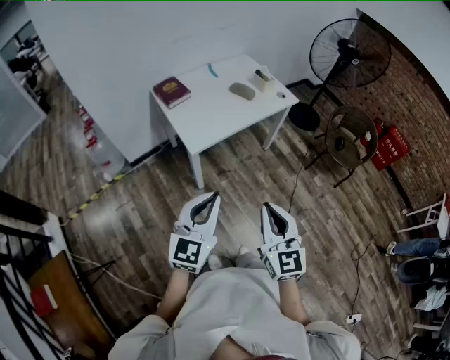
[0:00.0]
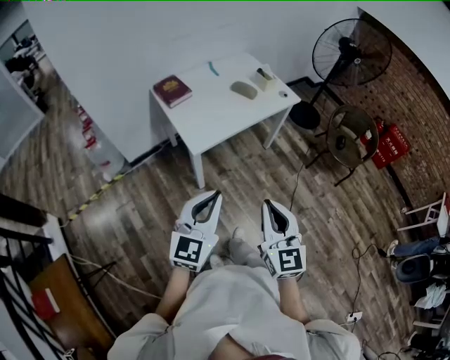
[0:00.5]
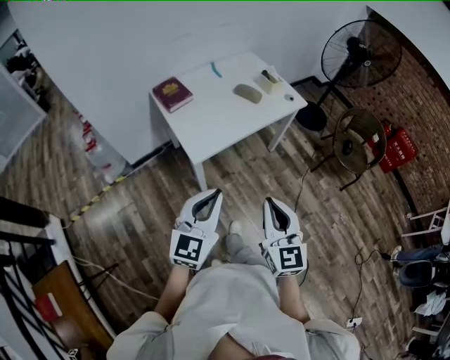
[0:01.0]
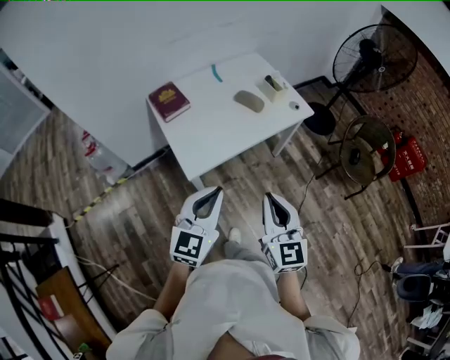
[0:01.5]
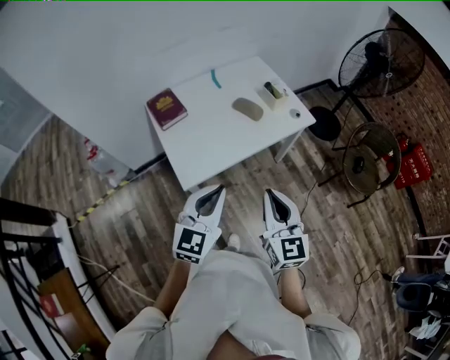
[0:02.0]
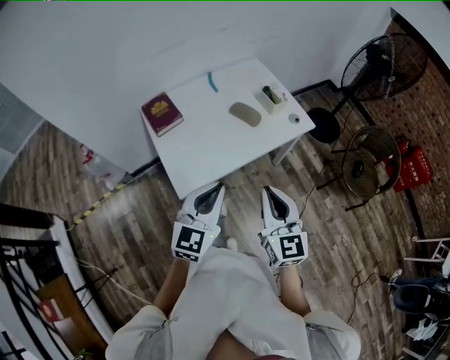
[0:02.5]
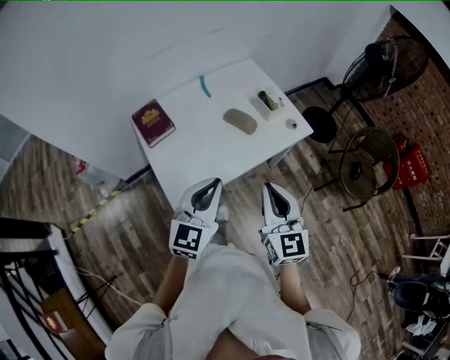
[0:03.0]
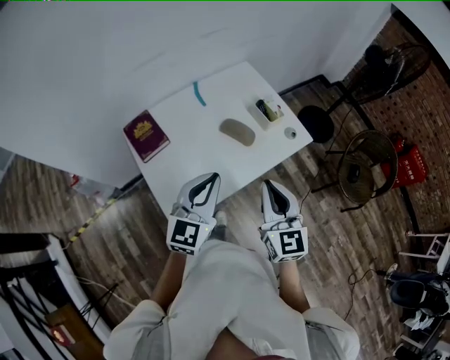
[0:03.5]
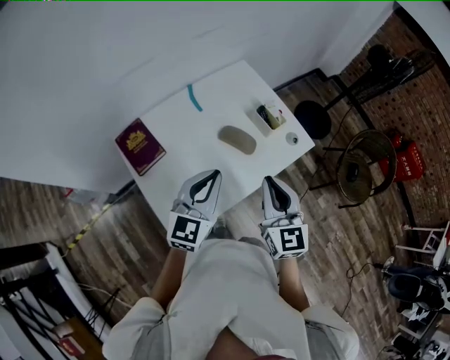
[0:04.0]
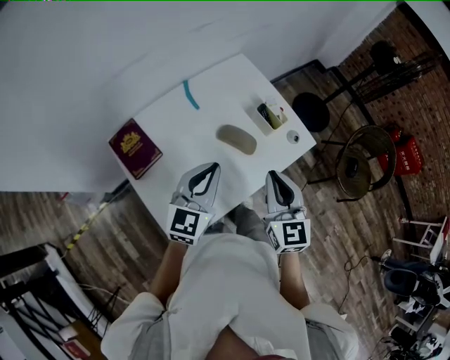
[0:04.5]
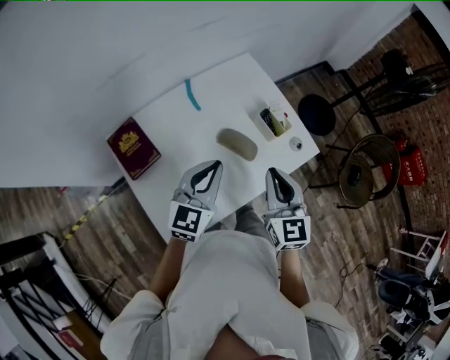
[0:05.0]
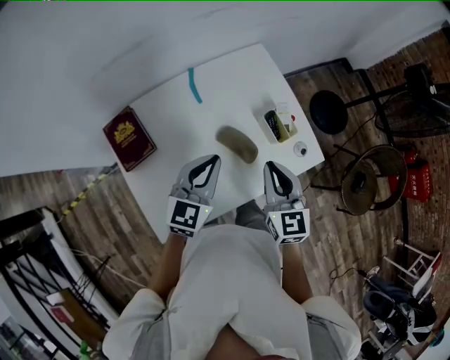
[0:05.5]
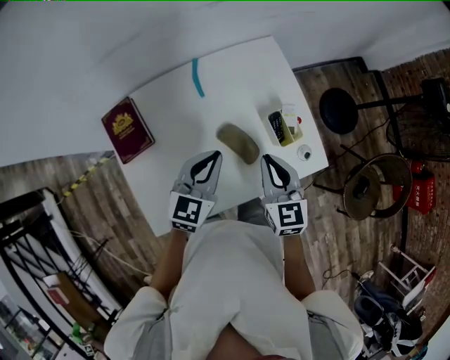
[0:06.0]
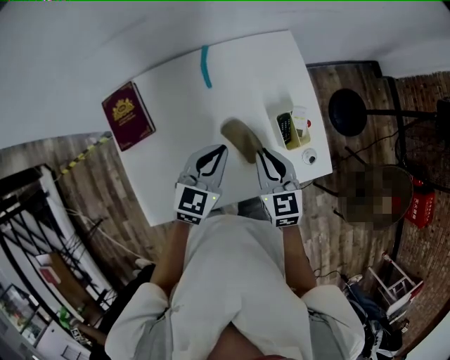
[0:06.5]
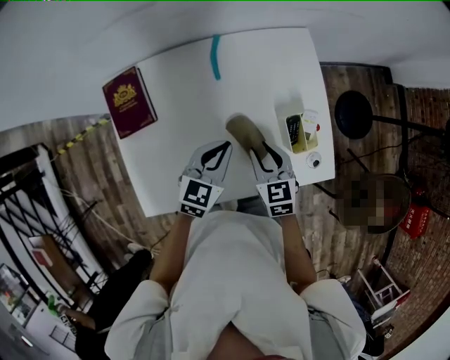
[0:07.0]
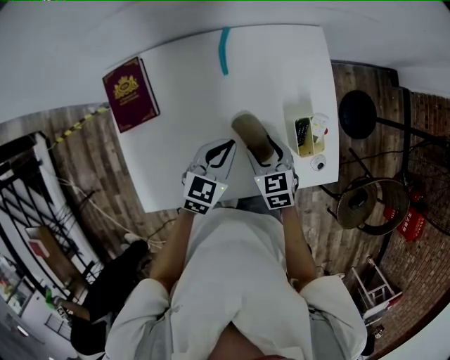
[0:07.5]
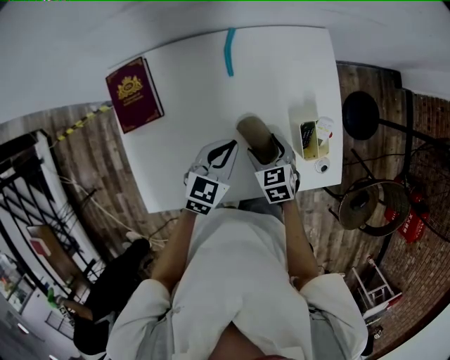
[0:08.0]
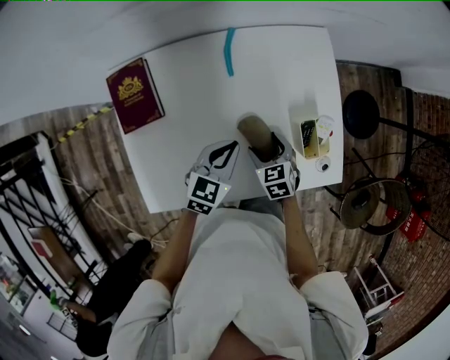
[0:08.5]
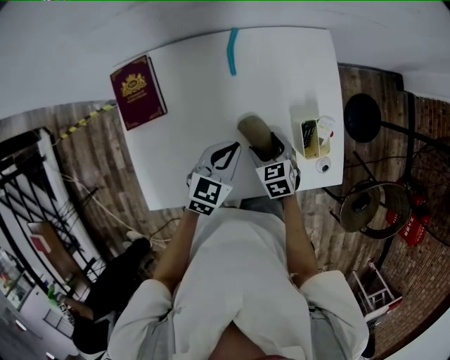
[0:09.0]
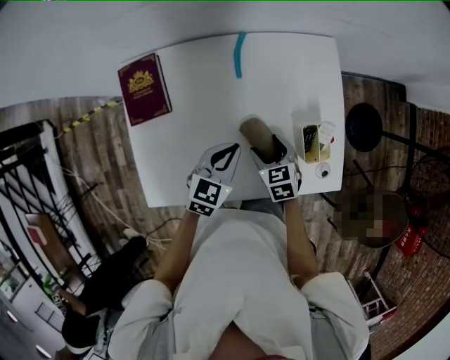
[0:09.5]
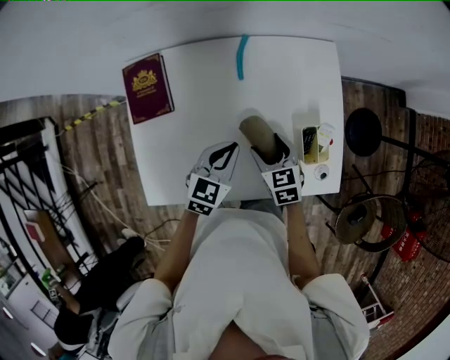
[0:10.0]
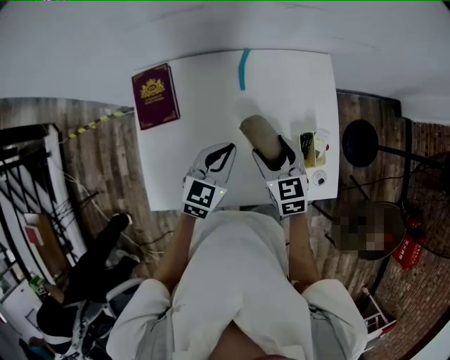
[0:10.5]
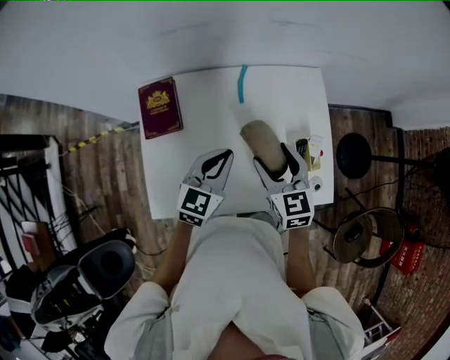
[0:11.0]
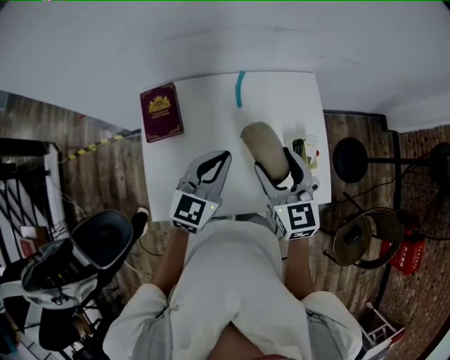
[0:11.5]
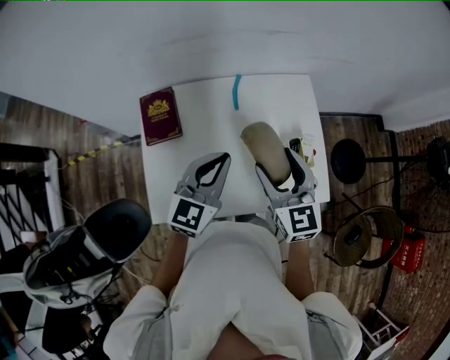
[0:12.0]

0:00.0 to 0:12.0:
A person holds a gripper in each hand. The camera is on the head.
0:00.0 to 0:02.0: The two grippers go about 30 cm forward.
0:02.0 to 0:04.0: The two grippers go some 30 cm forward.
0:04.0 to 0:06.0: The grippers both shift forward and downward by about 20 cm. The right gripper swivels about 20 degrees.
0:06.0 to 0:08.0: The left gripper moves downward, some 10 cm. Meanwhile the right gripper travels downward by roughly 20 cm, turns by roughly 40 degrees, and opens up.
0:08.0 to 0:10.0: The grippers make only small movements.
0:10.0 to 0:12.0: Both grippers move upward, roughly 20 cm. The left gripper turns by about 20 degrees, while the right gripper swivels about 30 degrees.

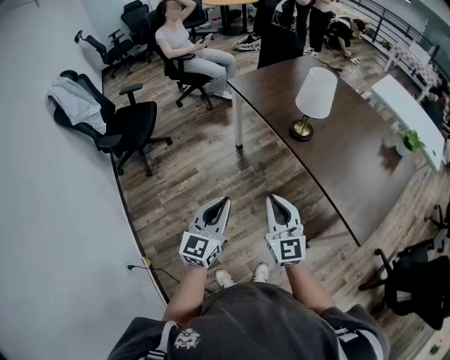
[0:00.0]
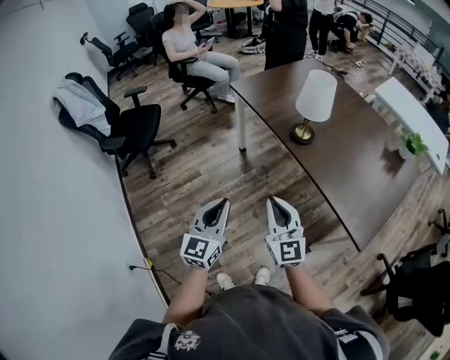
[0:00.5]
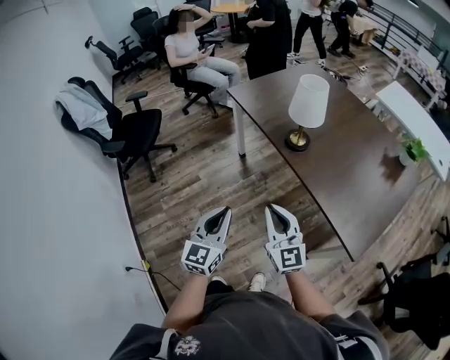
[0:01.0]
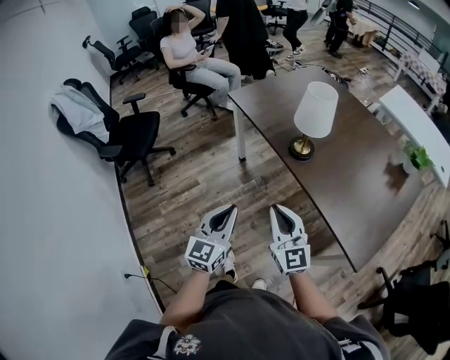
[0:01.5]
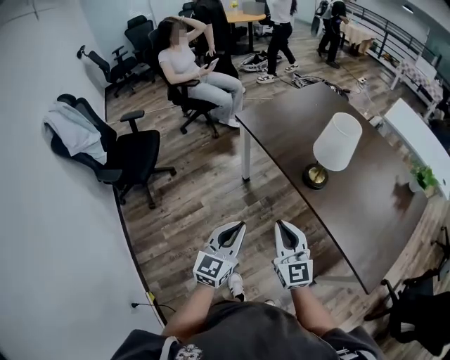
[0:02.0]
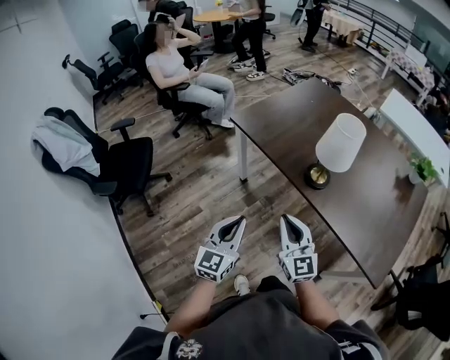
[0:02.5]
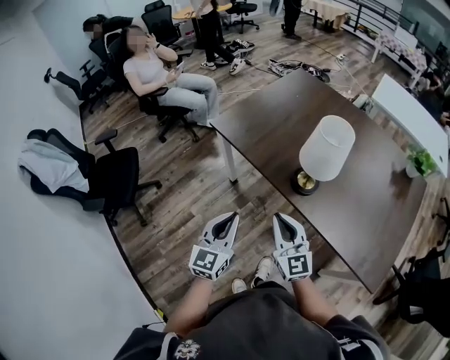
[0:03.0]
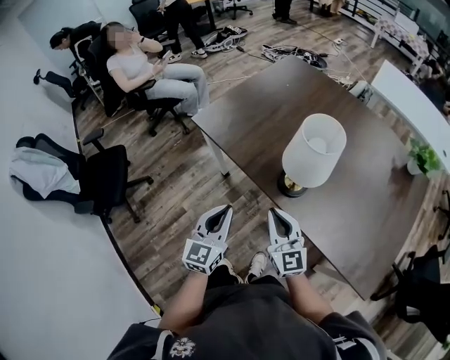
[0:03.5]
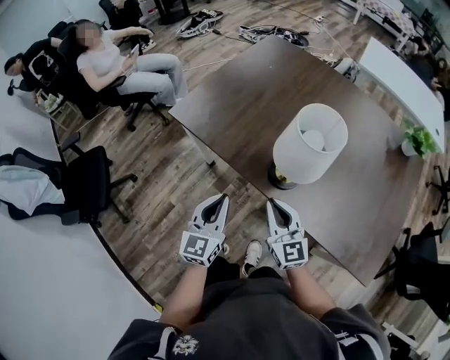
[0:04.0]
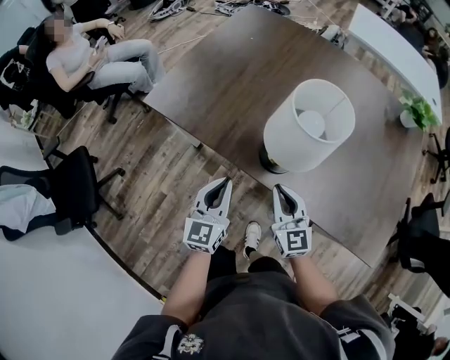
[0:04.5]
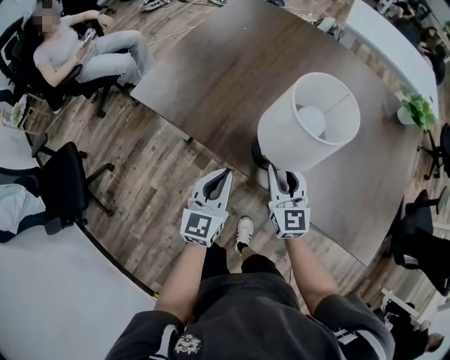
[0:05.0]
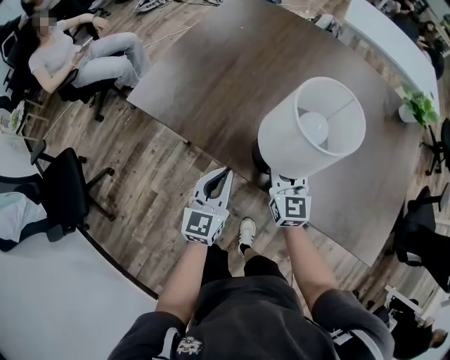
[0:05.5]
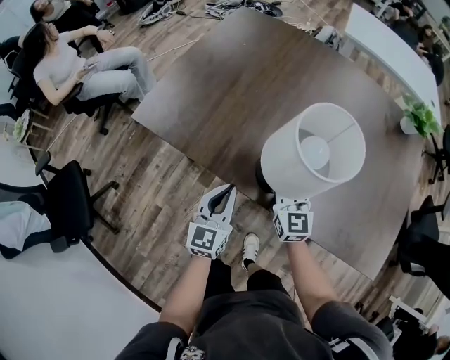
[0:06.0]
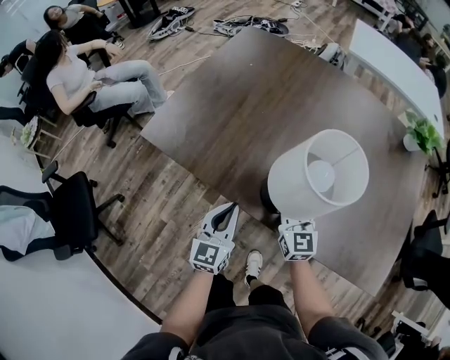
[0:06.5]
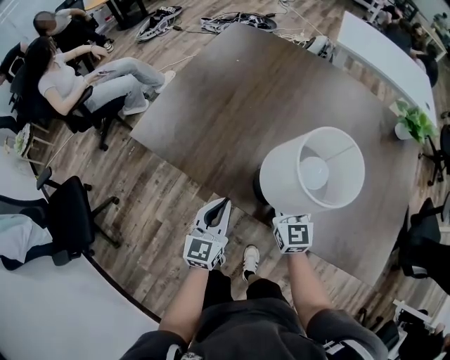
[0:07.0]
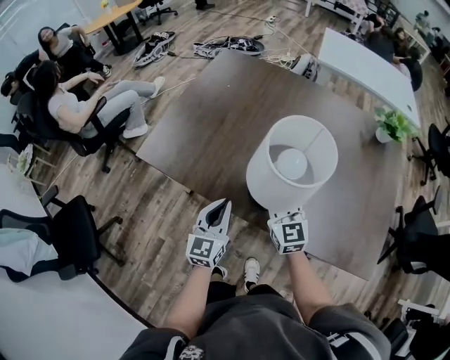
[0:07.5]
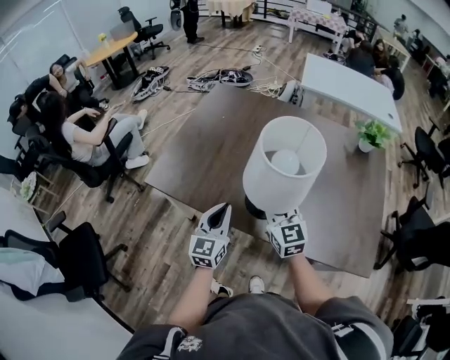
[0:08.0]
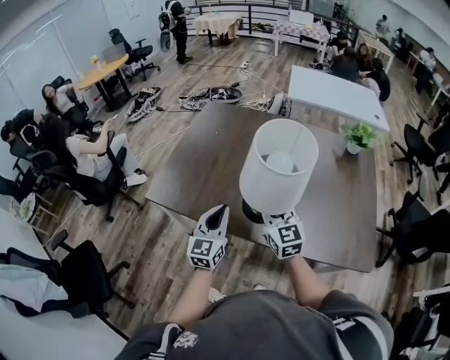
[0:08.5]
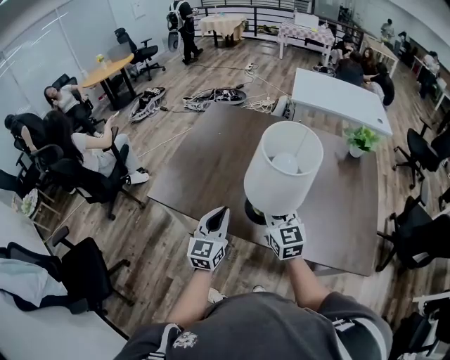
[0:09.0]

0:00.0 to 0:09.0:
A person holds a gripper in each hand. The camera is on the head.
0:00.0 to 0:02.0: Both grippers move forward, about 15 cm.
0:02.0 to 0:04.5: The right gripper shifts about 30 cm forward, downward and to the right, and turns by roughly 30 degrees. The left gripper shifts roughly 35 cm forward and downward.
0:04.5 to 0:07.0: The right gripper travels forward by approximately 10 cm. Meanwhile the left gripper moves forward, approximately 5 cm.
0:07.0 to 0:09.0: Both grippers move upward, some 20 cm.

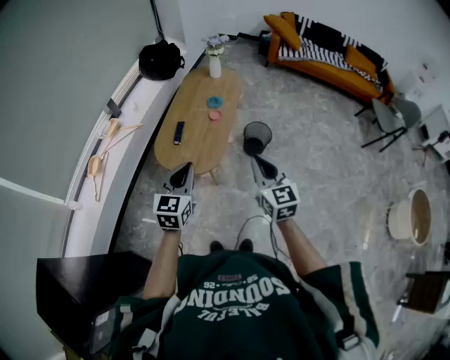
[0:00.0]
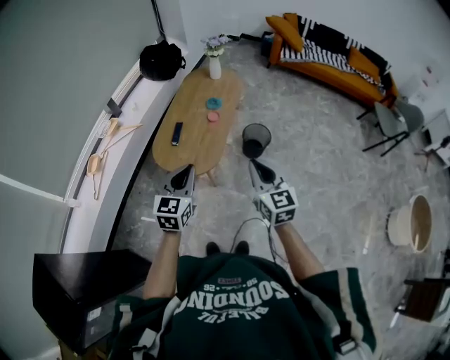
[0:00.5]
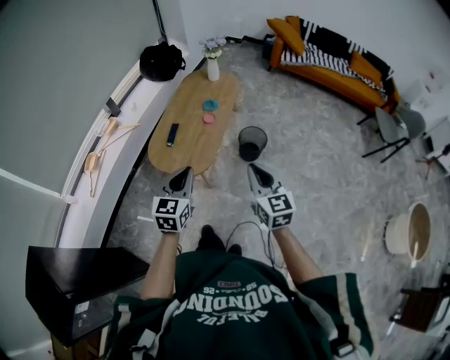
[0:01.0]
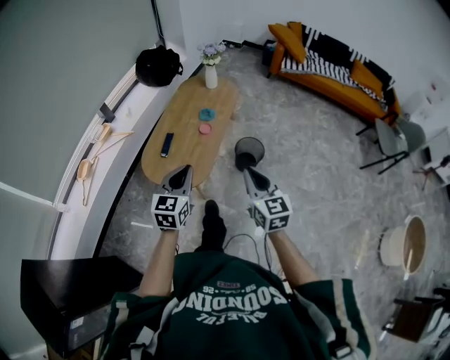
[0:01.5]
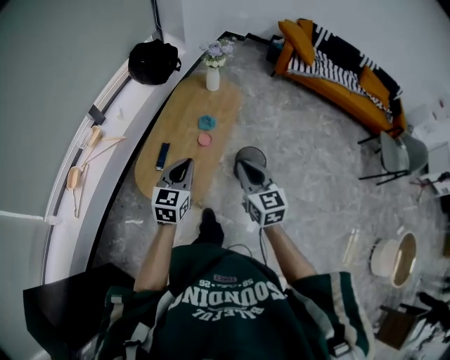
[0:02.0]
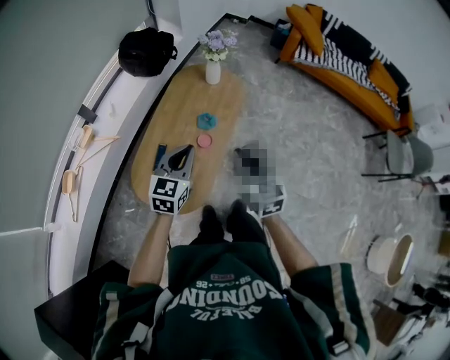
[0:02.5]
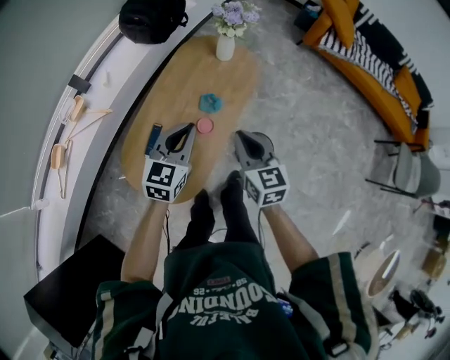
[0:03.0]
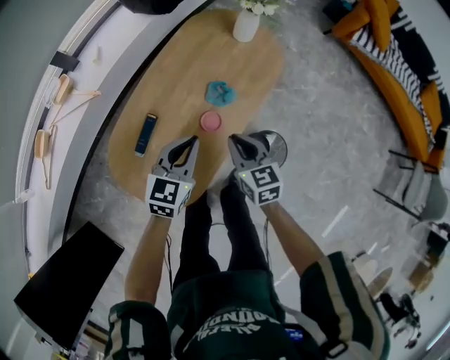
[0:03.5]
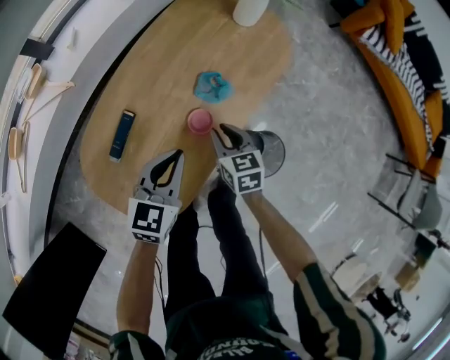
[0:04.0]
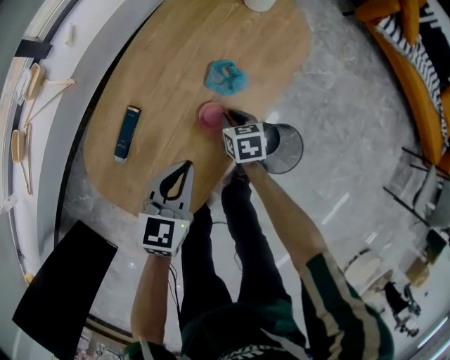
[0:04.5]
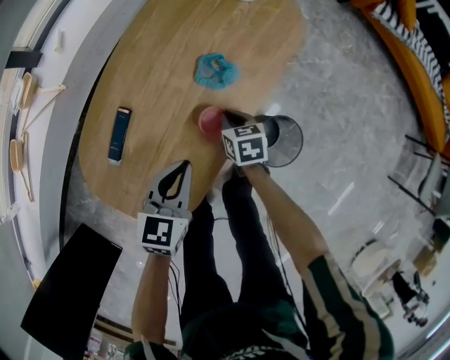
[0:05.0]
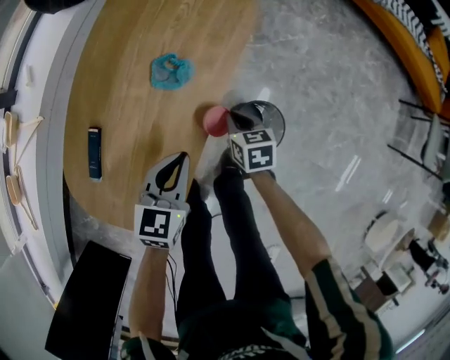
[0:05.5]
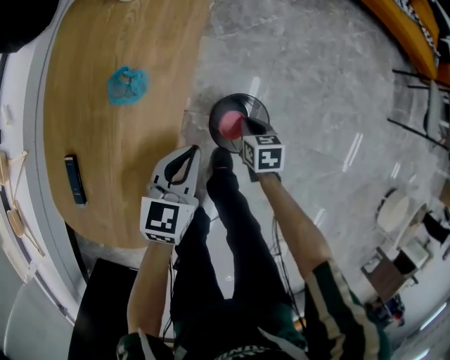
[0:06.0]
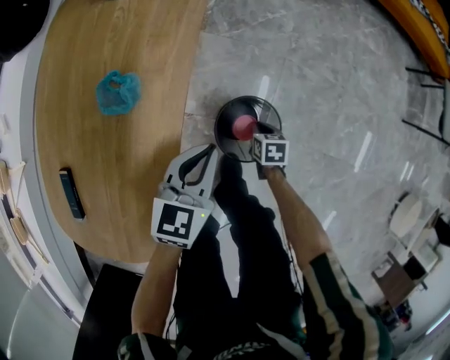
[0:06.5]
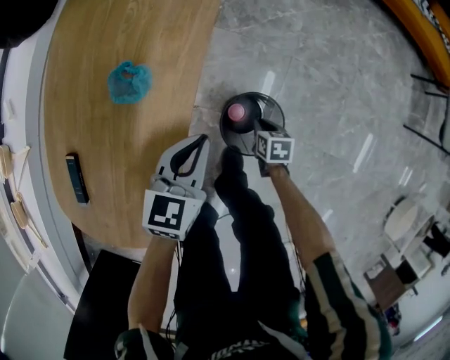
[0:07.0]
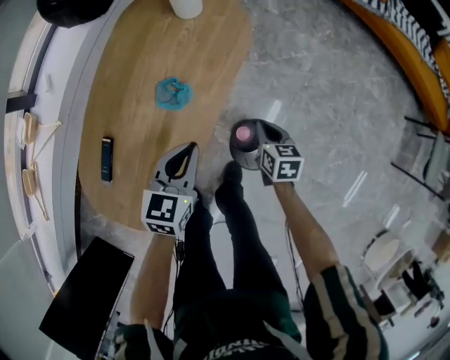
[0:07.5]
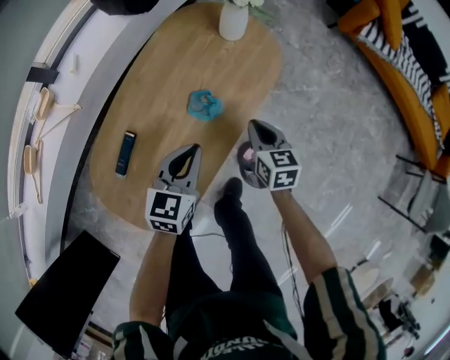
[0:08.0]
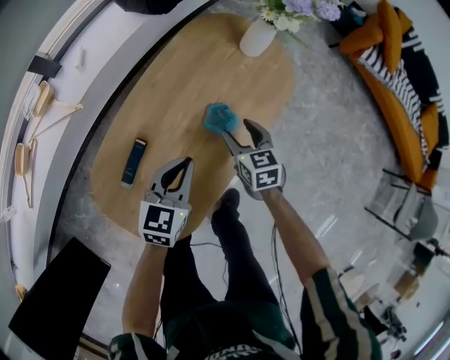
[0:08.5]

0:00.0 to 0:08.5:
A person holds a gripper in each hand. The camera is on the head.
0:00.0 to 0:02.0: The grippers both shift forward by some 30 cm.
0:02.0 to 0:04.0: The grippers both shift downward and forward by about 50 cm. The right gripper rotates some 30 degrees.
0:04.0 to 0:06.5: The left gripper shifts by roughly 30 cm, and turns by some 20 degrees, while the right gripper moves roughly 50 cm, and changes its angle by about 50 degrees.
0:06.5 to 0:08.5: The left gripper changes place by approximately 35 cm, and changes its angle by some 30 degrees; the right gripper moves approximately 50 cm, swivels about 50 degrees, and opens.
